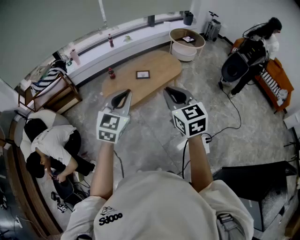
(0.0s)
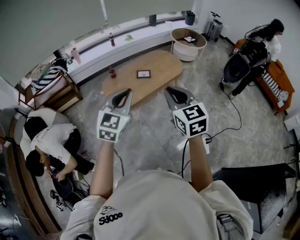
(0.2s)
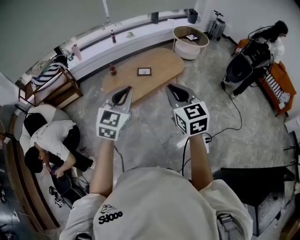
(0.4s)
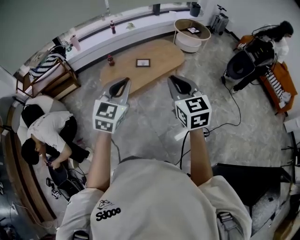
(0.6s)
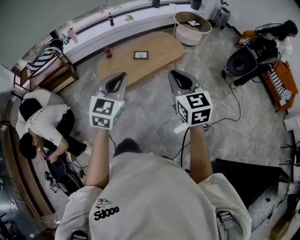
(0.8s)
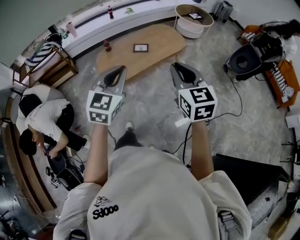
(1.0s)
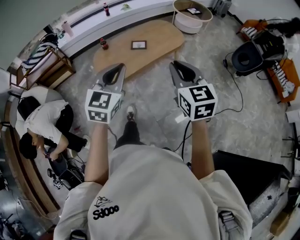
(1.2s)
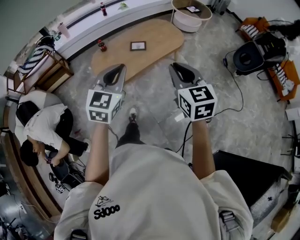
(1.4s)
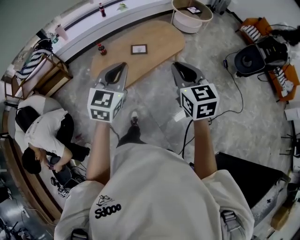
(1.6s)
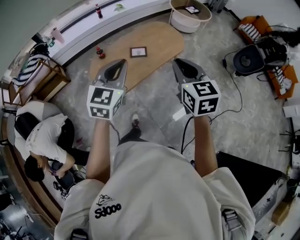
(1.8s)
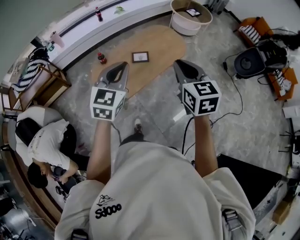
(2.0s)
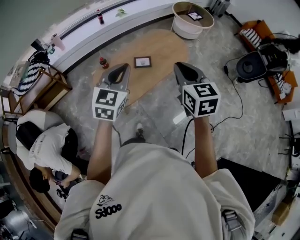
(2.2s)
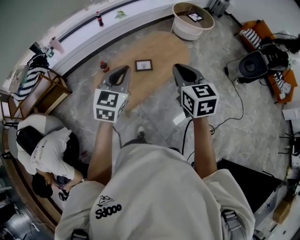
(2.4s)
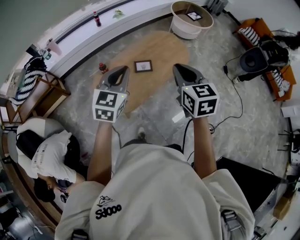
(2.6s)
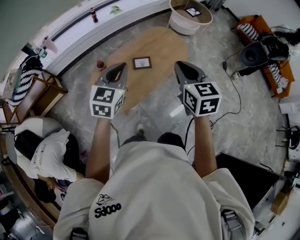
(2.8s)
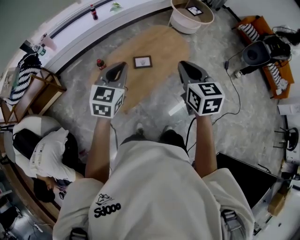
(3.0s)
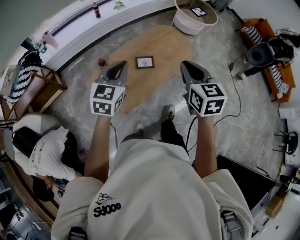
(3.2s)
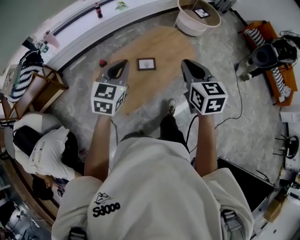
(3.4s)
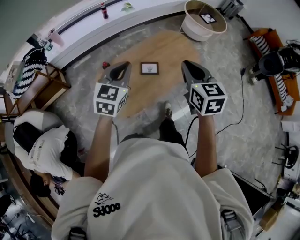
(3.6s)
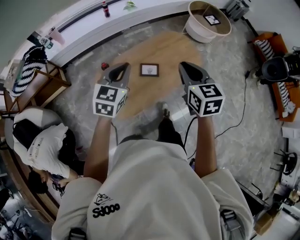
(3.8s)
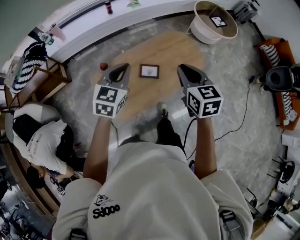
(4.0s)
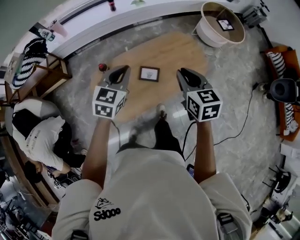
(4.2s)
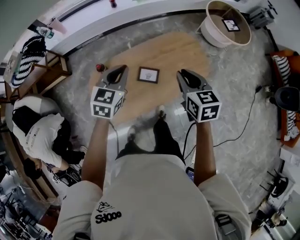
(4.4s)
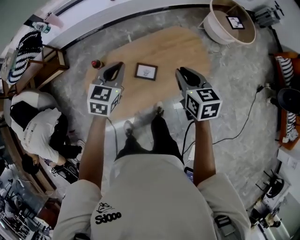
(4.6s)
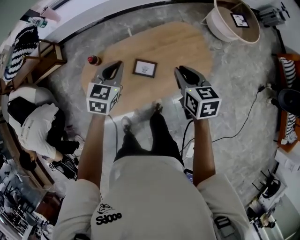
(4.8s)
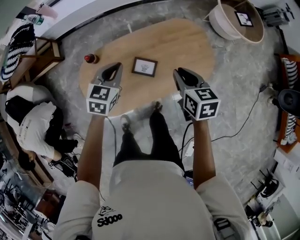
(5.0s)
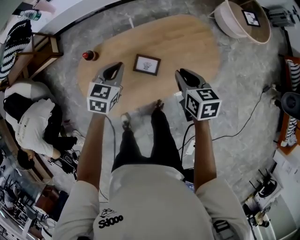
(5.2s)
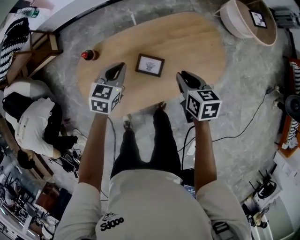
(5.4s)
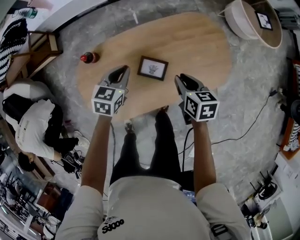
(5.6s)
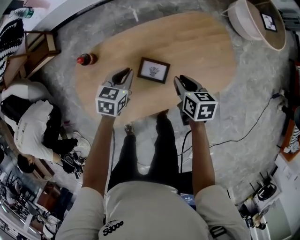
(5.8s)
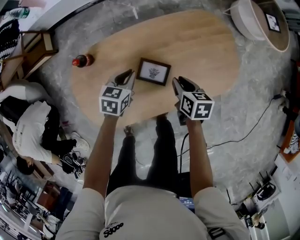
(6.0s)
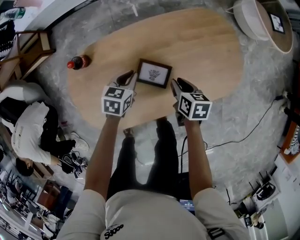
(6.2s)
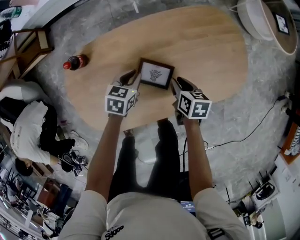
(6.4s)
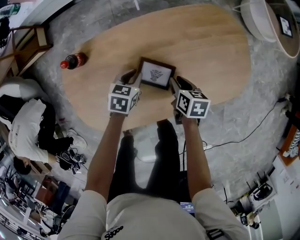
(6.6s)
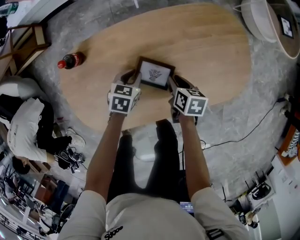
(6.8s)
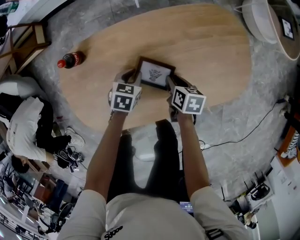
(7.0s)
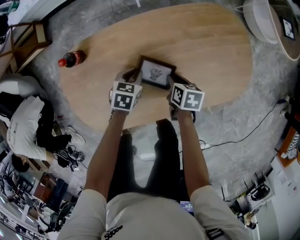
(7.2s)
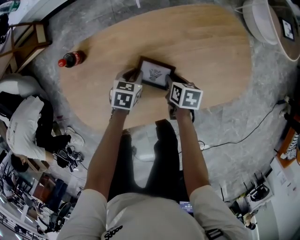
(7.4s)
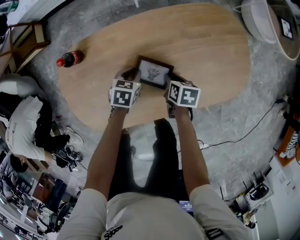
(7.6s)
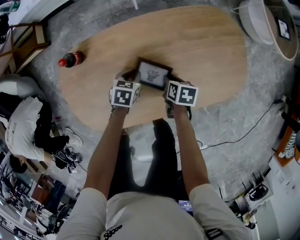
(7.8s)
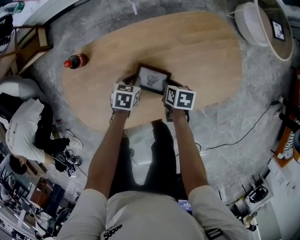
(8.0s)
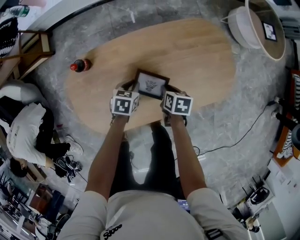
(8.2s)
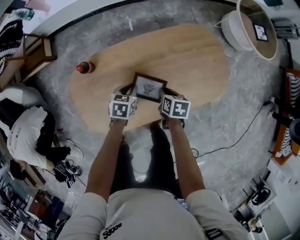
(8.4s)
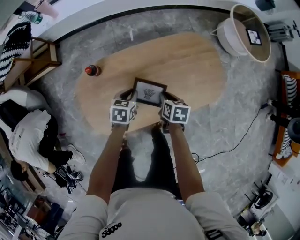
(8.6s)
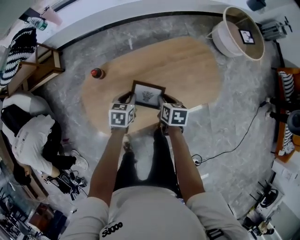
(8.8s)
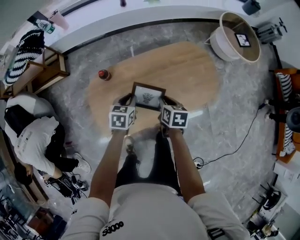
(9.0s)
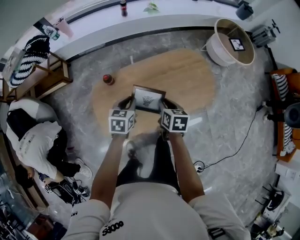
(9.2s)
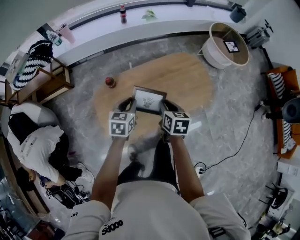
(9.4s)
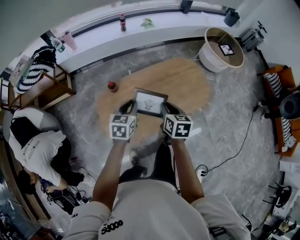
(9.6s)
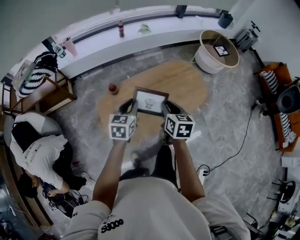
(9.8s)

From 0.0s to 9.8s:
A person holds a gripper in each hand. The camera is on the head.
From 0.0s to 1.4s: The left gripper goes roughly 15 cm forward and downward; the right gripper is displaced forward, downward and to the right by some 15 cm.
From 1.4s to 2.8s: The two grippers go approximately 30 cm forward and to the left.
From 2.8s to 4.2s: The two grippers go roughly 25 cm forward and downward.
From 4.2s to 5.6s: Both grippers move downward, approximately 30 cm. The right gripper turns by roughly 30 degrees, while the left gripper swivels about 20 degrees.
From 5.6s to 7.0s: The two grippers go approximately 25 cm downward.
From 7.0s to 8.4s: The grippers both shift upward by some 10 cm.
From 8.4s to 9.8s: The grippers both shift upward and backward by approximately 40 cm. The left gripper rotates approximately 30 degrees, while the right gripper changes its angle by about 30 degrees.

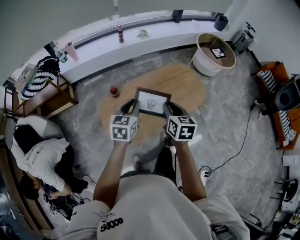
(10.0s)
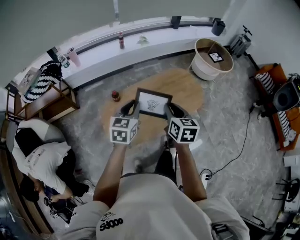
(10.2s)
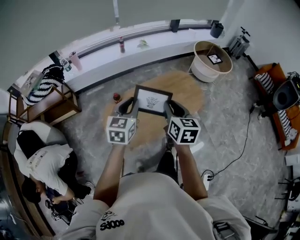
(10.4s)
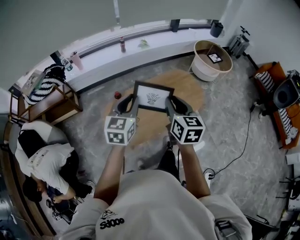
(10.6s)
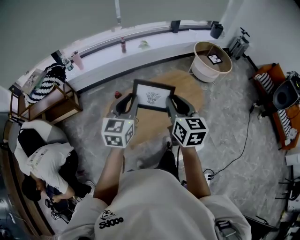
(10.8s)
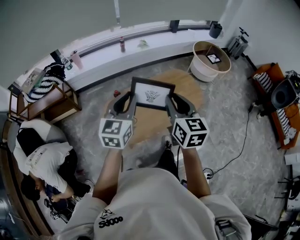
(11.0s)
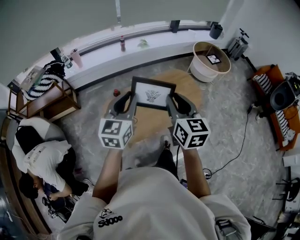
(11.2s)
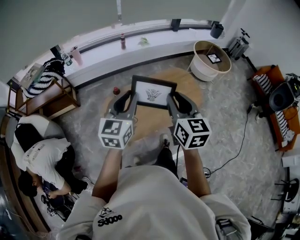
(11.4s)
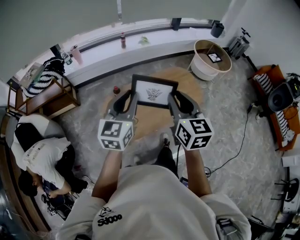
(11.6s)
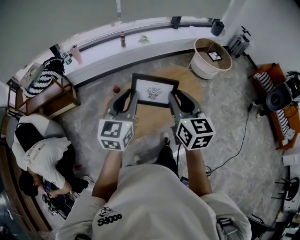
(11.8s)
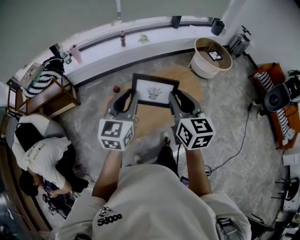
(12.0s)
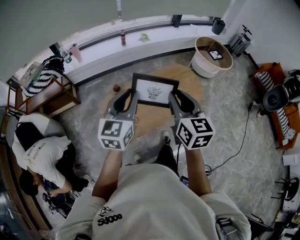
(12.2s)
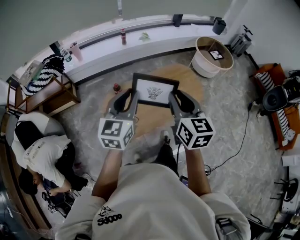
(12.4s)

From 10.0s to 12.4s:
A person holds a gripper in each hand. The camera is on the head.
From 10.0s to 11.2s: Both grippers travel together upward and backward, about 20 cm. The right gripper swivels roughly 20 degrees. Meanwhile the left gripper rotates some 20 degrees.
From 11.2s to 12.4s: Both grippers stay put.

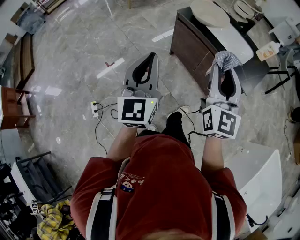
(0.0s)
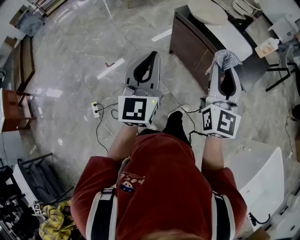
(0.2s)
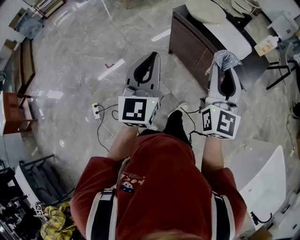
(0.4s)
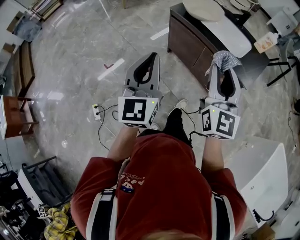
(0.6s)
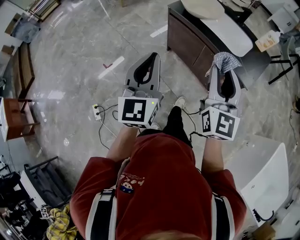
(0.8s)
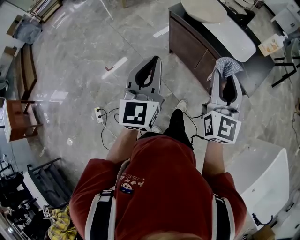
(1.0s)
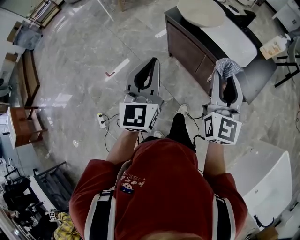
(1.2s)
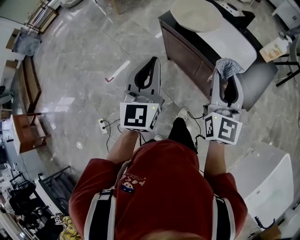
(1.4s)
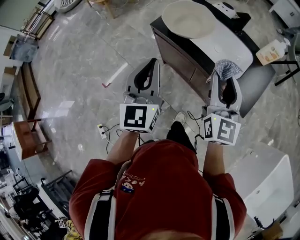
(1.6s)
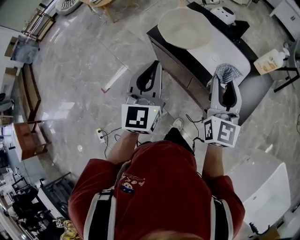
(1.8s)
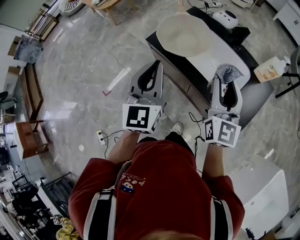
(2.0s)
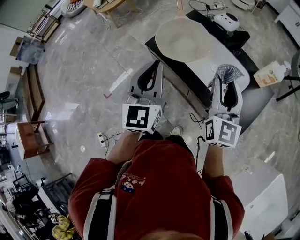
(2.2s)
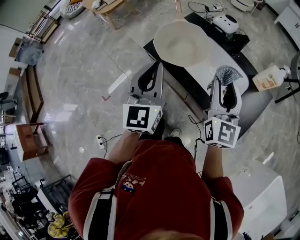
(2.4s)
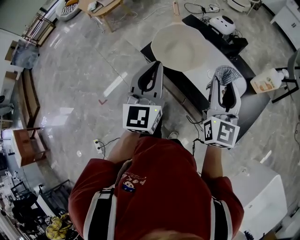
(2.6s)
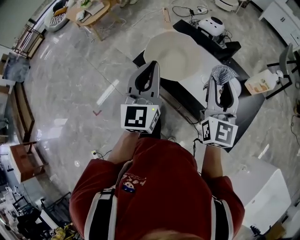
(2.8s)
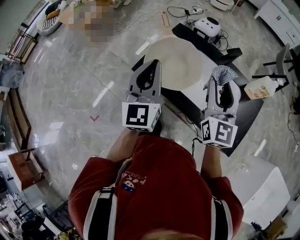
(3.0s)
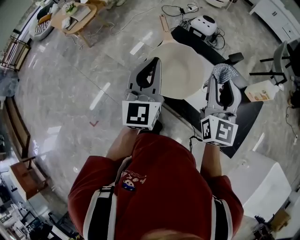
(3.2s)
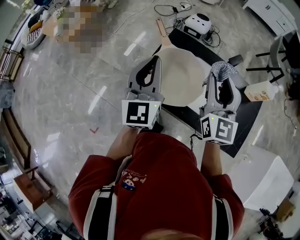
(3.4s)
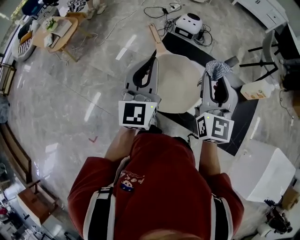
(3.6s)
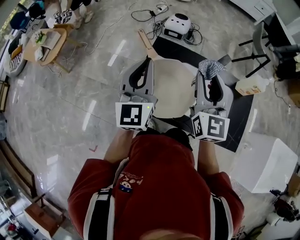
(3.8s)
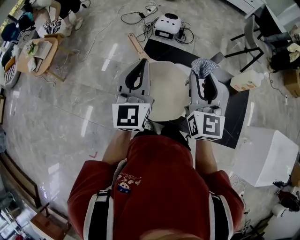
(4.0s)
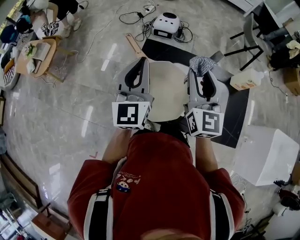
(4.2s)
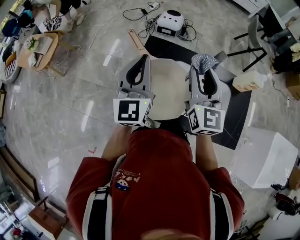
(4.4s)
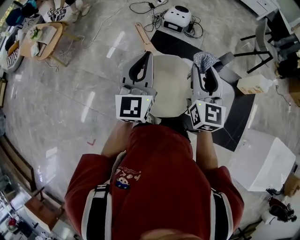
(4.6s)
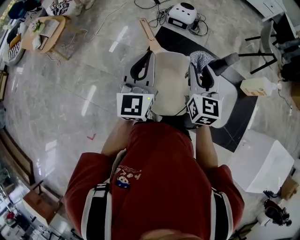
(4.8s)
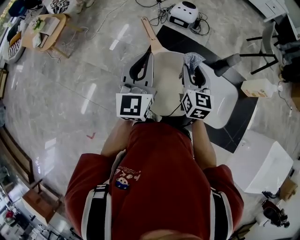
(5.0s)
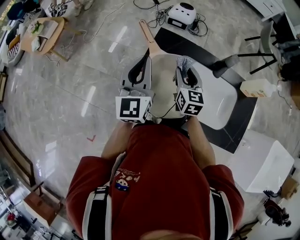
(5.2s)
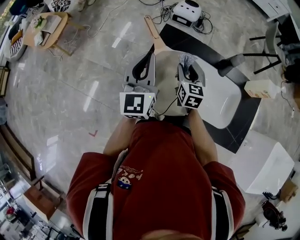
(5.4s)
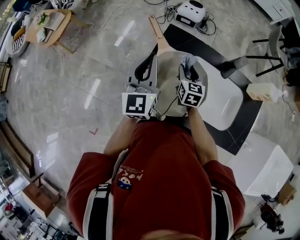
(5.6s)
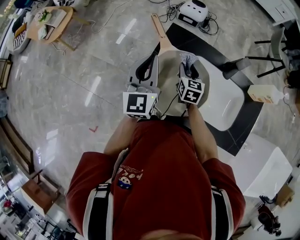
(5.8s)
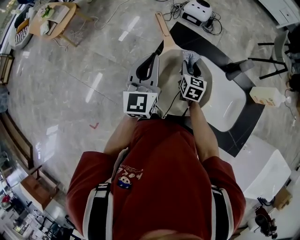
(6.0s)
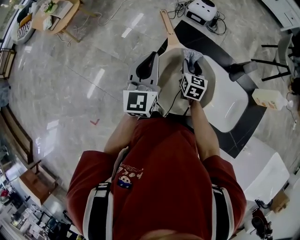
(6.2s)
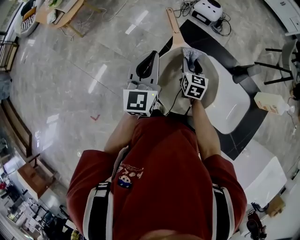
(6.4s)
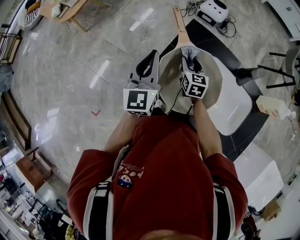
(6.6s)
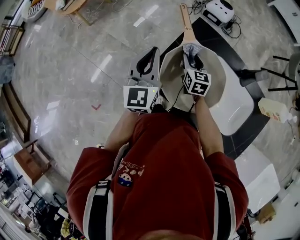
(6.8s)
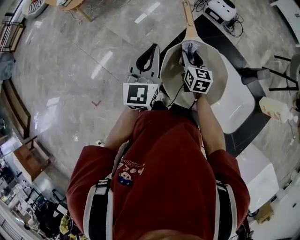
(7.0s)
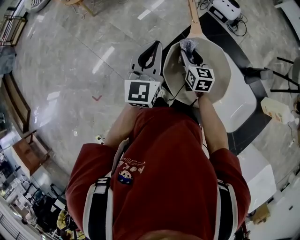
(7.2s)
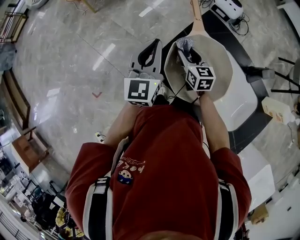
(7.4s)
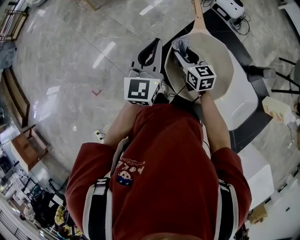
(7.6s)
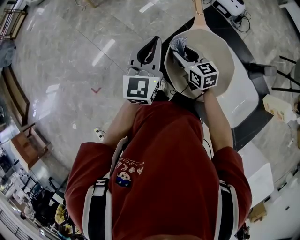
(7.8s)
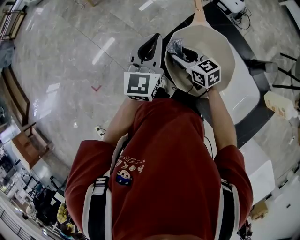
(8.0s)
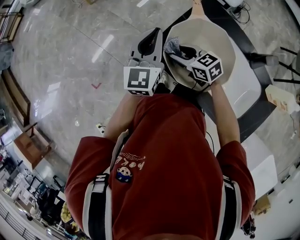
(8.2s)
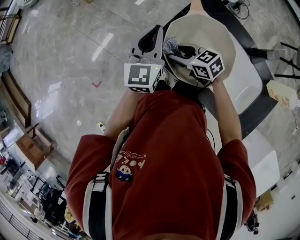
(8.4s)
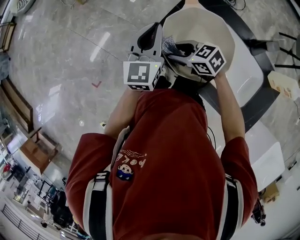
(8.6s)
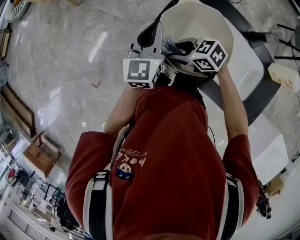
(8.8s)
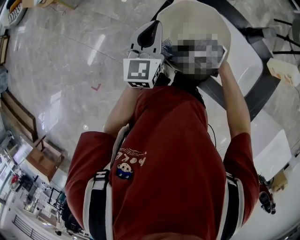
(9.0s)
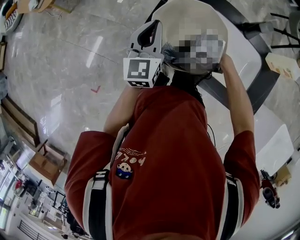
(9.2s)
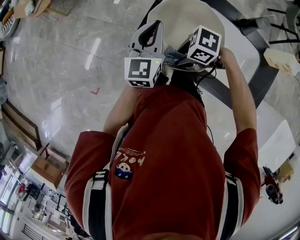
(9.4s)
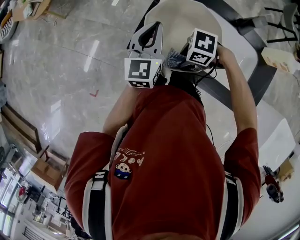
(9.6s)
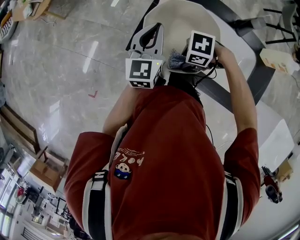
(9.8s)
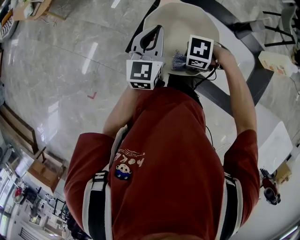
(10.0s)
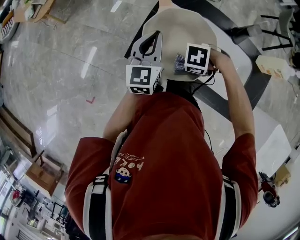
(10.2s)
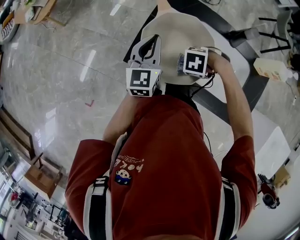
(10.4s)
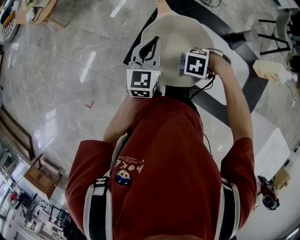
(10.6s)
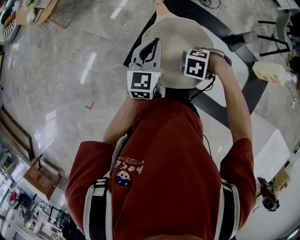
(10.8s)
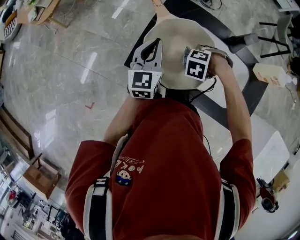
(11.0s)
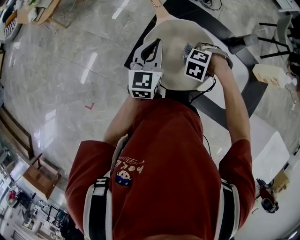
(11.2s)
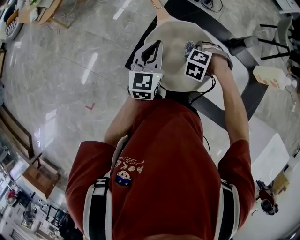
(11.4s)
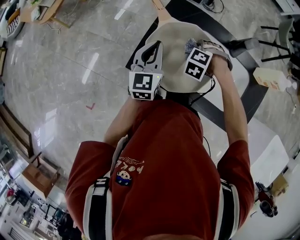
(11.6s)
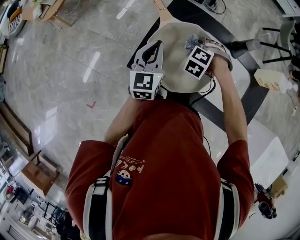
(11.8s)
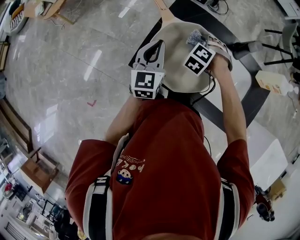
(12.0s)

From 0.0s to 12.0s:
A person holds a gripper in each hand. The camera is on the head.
From 0.0s to 1.6s: Both grippers move forward and to the right, some 25 cm.
From 1.6s to 3.0s: The two grippers go roughly 25 cm forward.
From 3.0s to 4.4s: The right gripper travels forward and to the left by approximately 15 cm; the left gripper travels forward by approximately 20 cm.
From 4.4s to 6.0s: The right gripper is displaced downward by some 30 cm, and tips its fingers downward by roughly 30 degrees. The left gripper travels downward by about 10 cm.
From 6.0s to 7.6s: The left gripper shifts by roughly 10 cm; the right gripper changes place by some 15 cm, and changes its angle by some 40 degrees.
From 7.6s to 9.0s: The left gripper shifts by roughly 5 cm. Meanwhile the right gripper goes about 15 cm backward and to the left, and swivels roughly 50 degrees.
From 9.0s to 10.4s: The right gripper shifts by about 15 cm, and tips its fingers downward by some 40 degrees; the left gripper shifts by some 5 cm.
From 10.4s to 12.0s: The right gripper ends up about 15 cm from where it was, and changes its angle by approximately 40 degrees.
